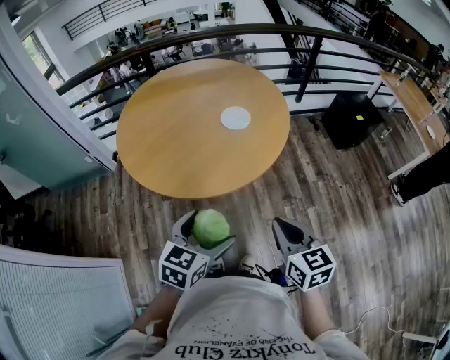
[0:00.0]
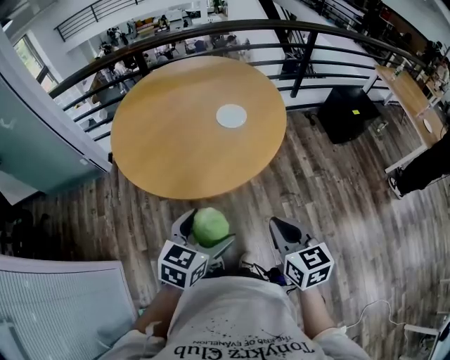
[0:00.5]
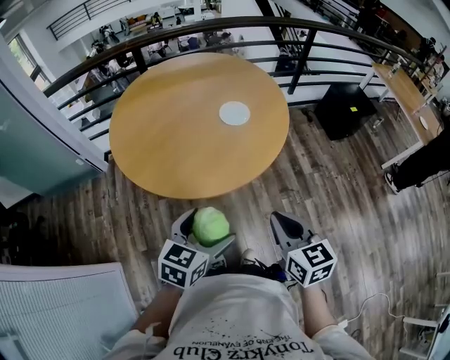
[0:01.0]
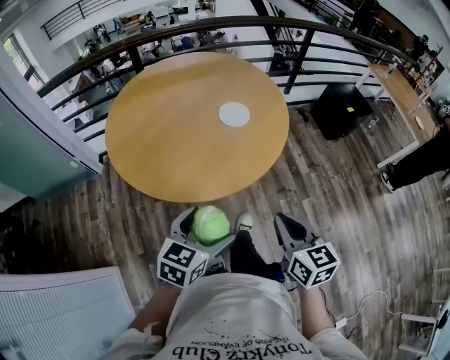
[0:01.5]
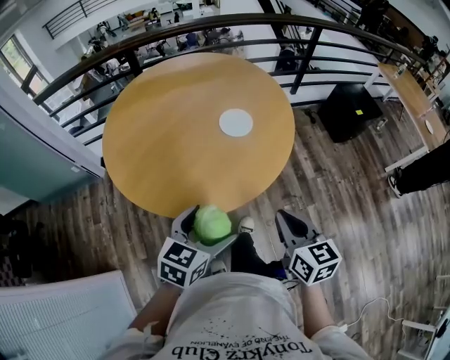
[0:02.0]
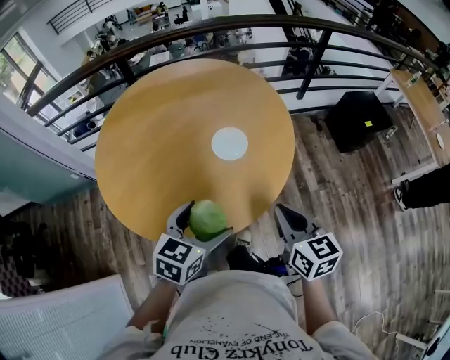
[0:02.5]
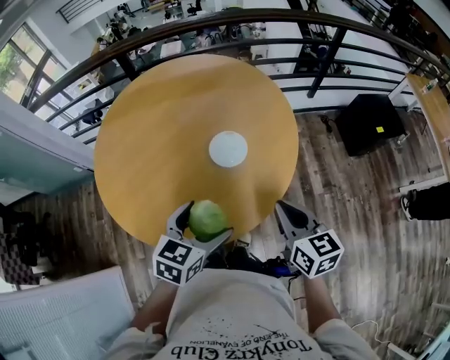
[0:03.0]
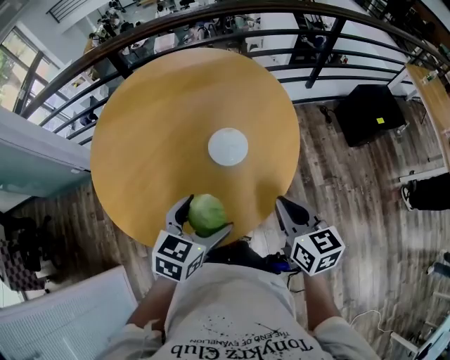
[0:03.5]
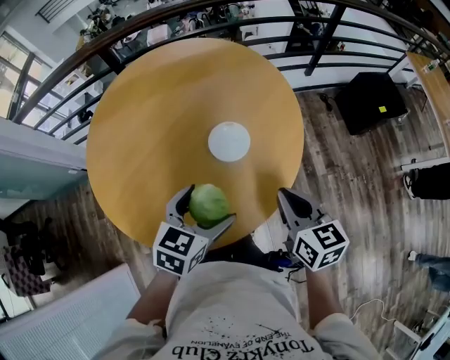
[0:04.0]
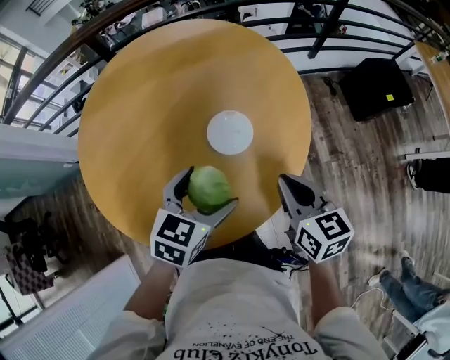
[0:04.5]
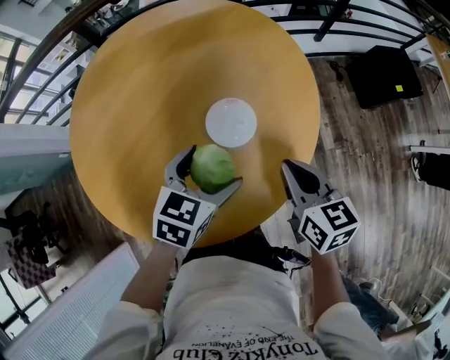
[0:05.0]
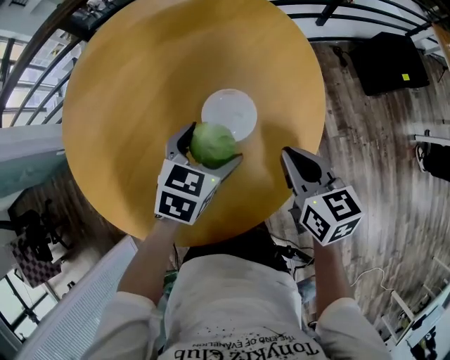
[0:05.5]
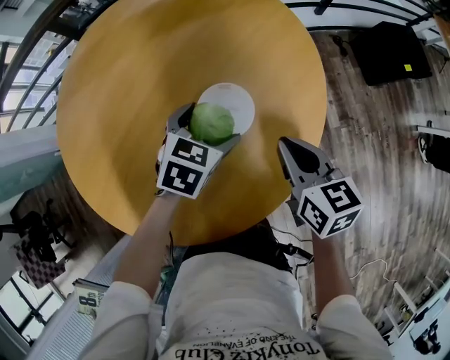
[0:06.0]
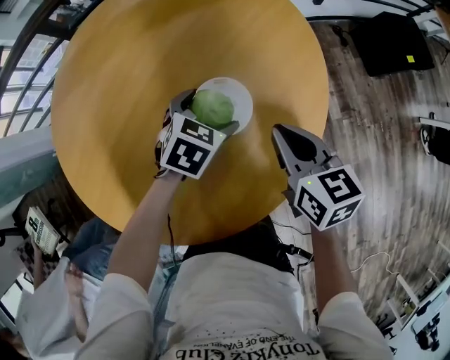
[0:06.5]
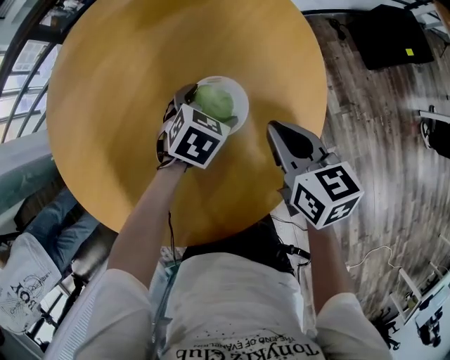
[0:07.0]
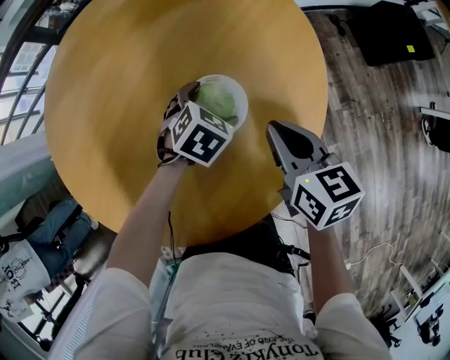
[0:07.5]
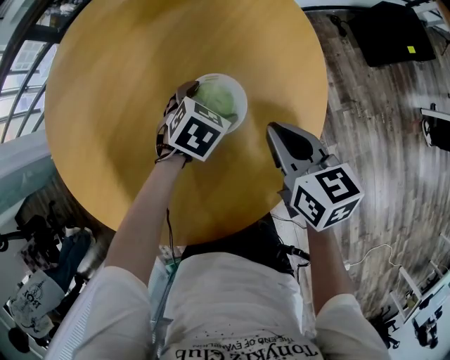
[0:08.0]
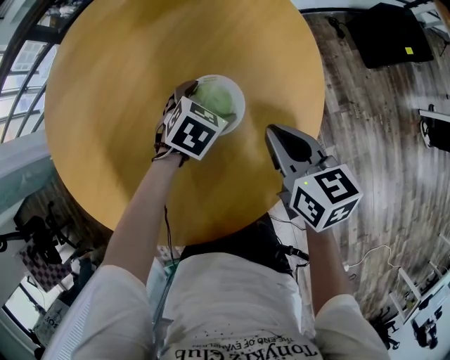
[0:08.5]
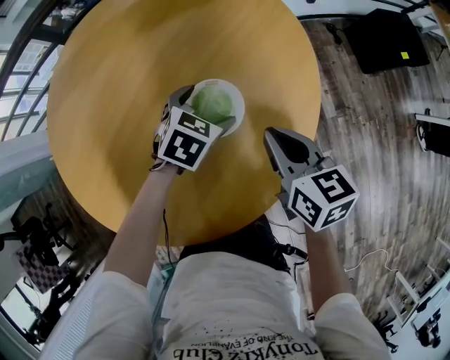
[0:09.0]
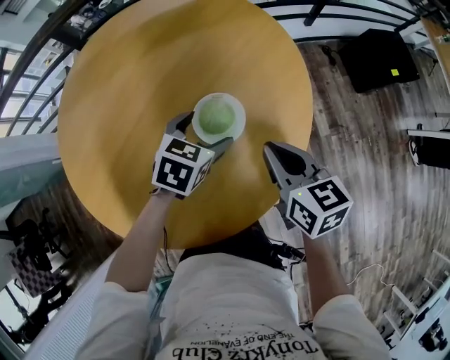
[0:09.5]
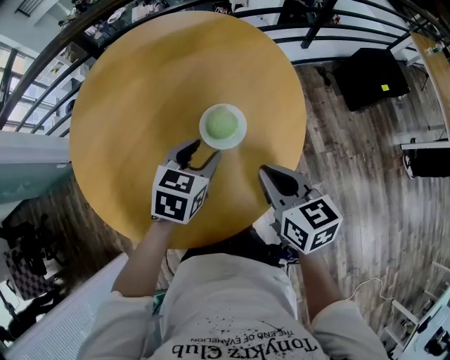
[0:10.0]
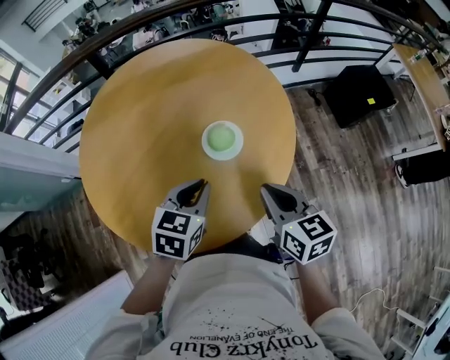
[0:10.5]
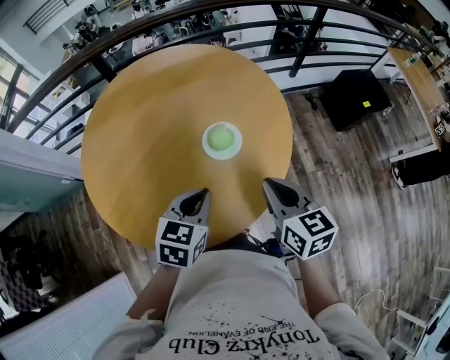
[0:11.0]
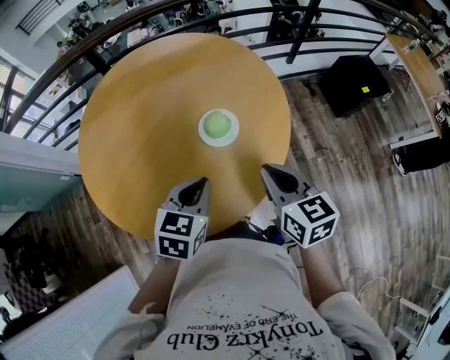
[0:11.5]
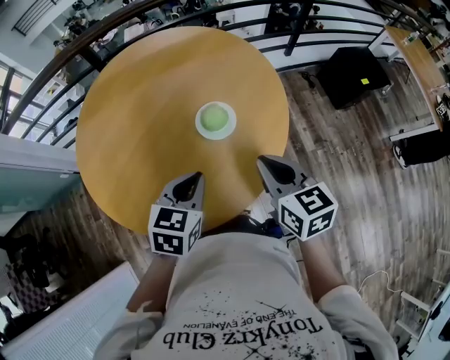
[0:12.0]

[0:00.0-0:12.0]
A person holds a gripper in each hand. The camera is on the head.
0:00.0 to 0:02.0: Both grippers move forward, roughly 10 cm.
0:02.0 to 0:04.0: Both grippers travel together forward, approximately 25 cm.
0:04.0 to 0:06.0: The two grippers go some 20 cm forward and downward.
0:06.0 to 0:08.0: The left gripper shifts roughly 10 cm downward.
0:08.0 to 0:10.0: The grippers both shift upward and backward by roughly 20 cm. The left gripper rotates approximately 30 degrees, and closes up.
0:10.0 to 0:12.0: The right gripper shifts approximately 10 cm upward and backward. Meanwhile the left gripper shifts about 15 cm backward and upward, and closes up.

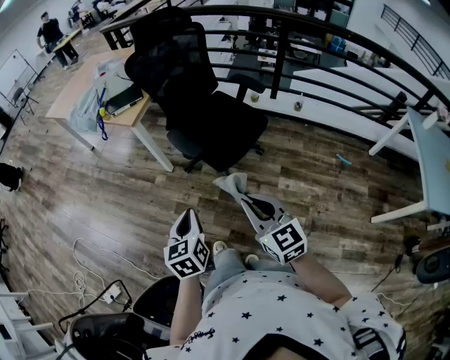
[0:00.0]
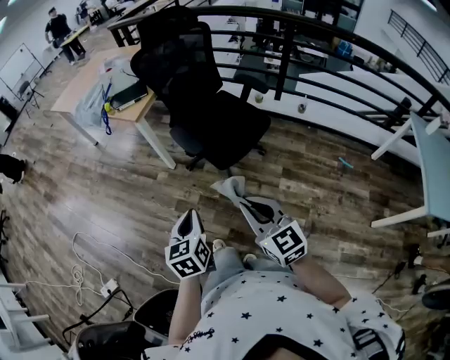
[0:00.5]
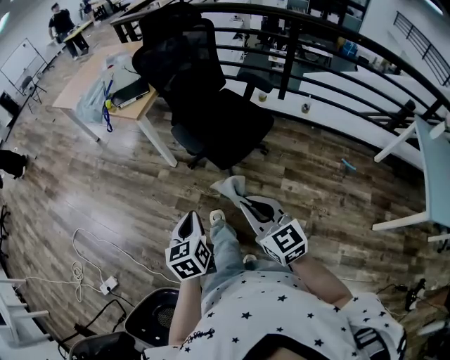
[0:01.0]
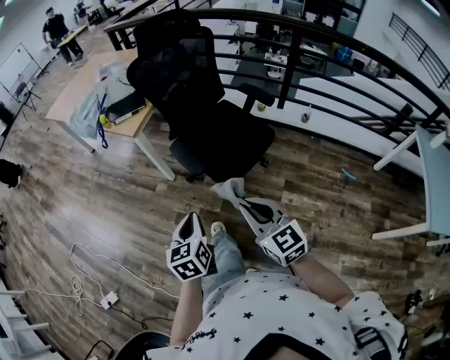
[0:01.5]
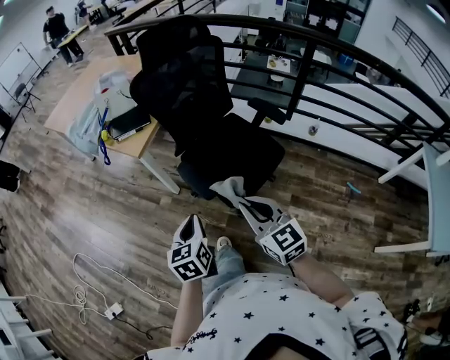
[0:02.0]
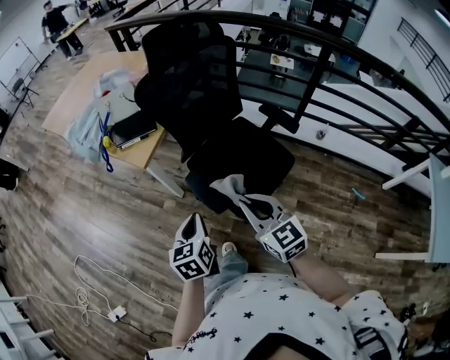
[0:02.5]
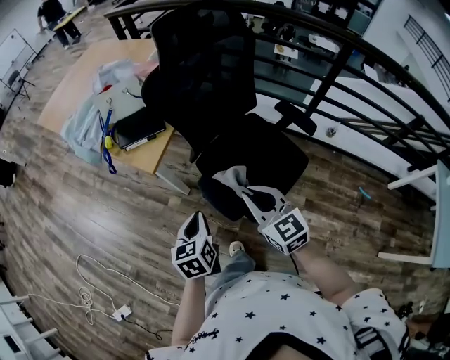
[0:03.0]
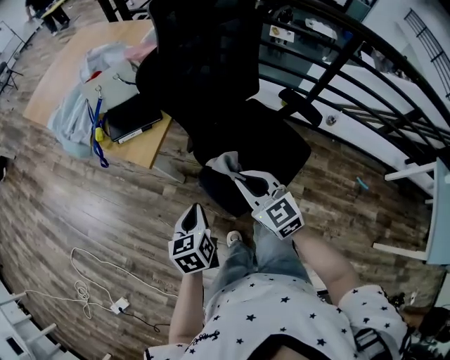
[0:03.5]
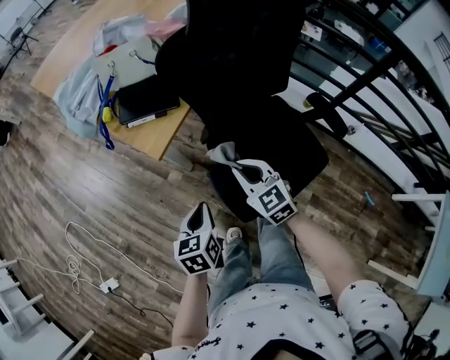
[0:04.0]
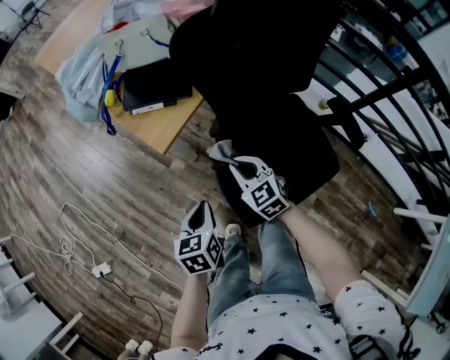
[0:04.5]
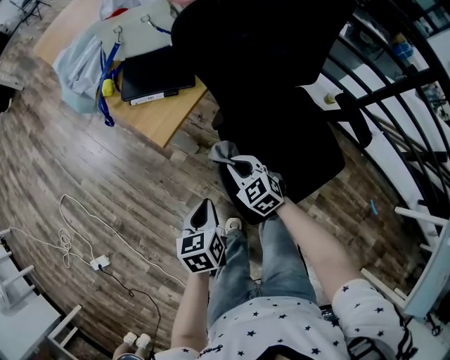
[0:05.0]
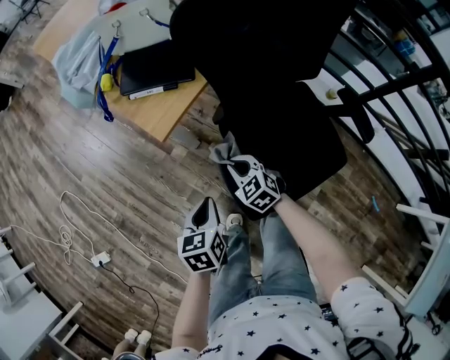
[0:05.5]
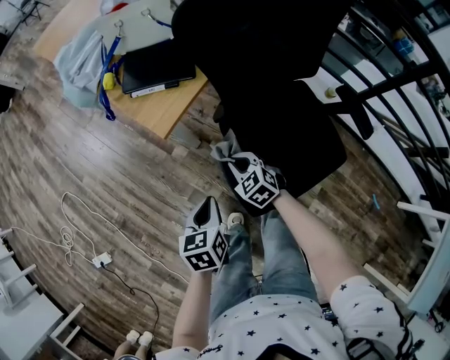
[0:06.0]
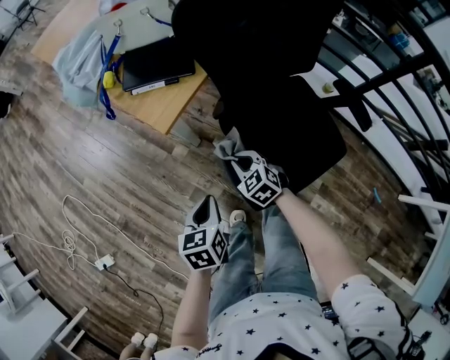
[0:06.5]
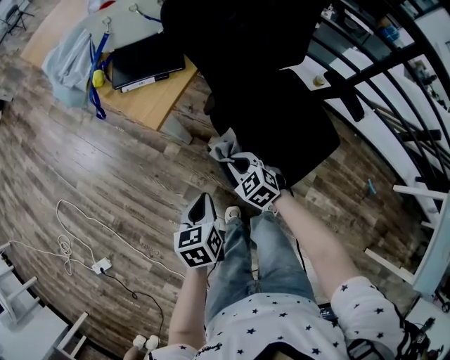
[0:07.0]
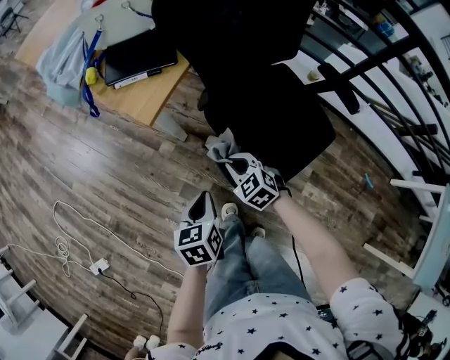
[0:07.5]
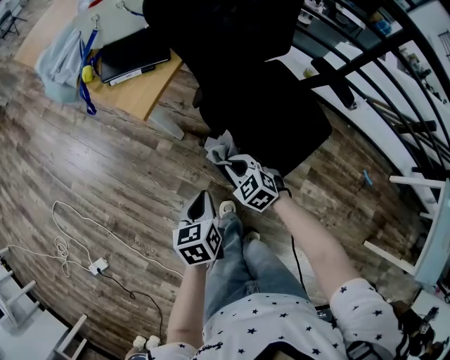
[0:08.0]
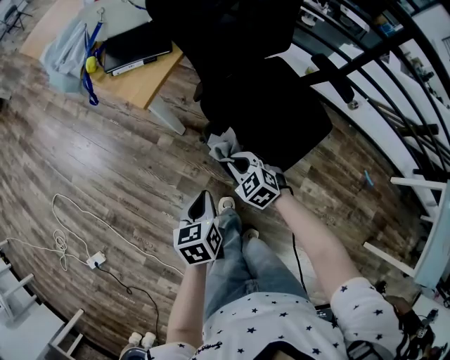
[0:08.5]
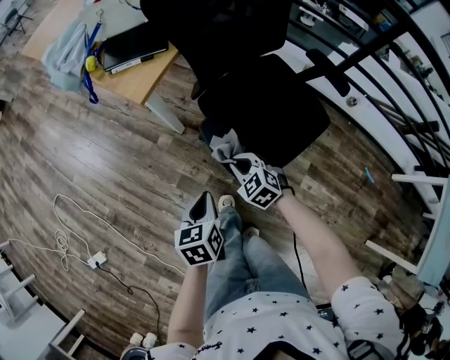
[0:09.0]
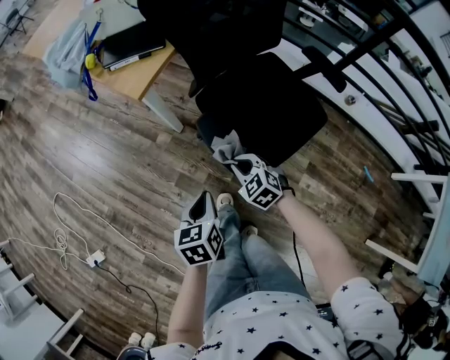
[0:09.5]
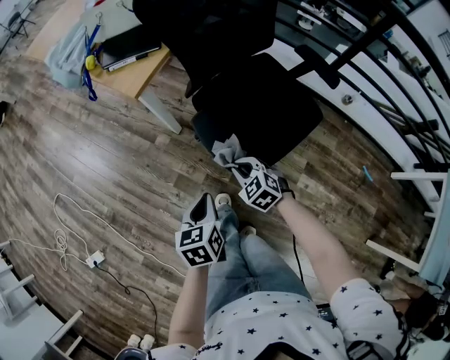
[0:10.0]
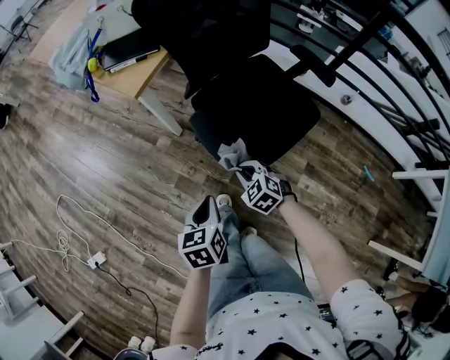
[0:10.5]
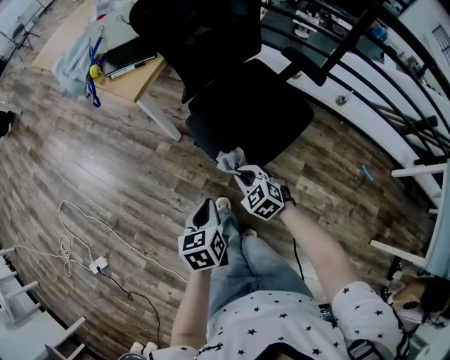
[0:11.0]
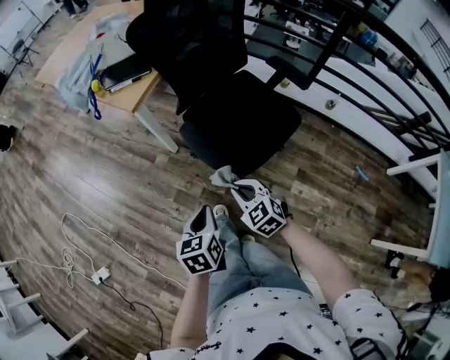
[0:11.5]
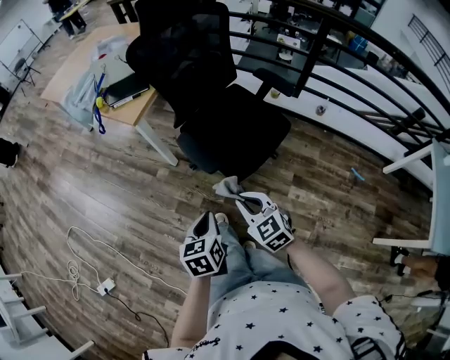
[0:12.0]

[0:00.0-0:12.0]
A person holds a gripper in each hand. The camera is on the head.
0:00.0 to 0:02.0: The two grippers go about 20 cm forward.
0:02.0 to 0:04.0: Both grippers move forward and downward, some 30 cm. The right gripper swivels about 20 degrees.
0:04.0 to 0:06.0: The right gripper heads downward, covering about 15 cm, and changes its angle by about 20 degrees, while the left gripper shifts approximately 5 cm downward.
0:06.0 to 0:08.0: The right gripper is displaced backward by approximately 10 cm; the left gripper moves backward, approximately 5 cm.
0:08.0 to 0:10.0: The grippers both shift backward by roughly 10 cm.
0:10.0 to 0:12.0: The left gripper shifts some 15 cm backward and upward, while the right gripper goes roughly 25 cm backward and upward, and turns by about 20 degrees.

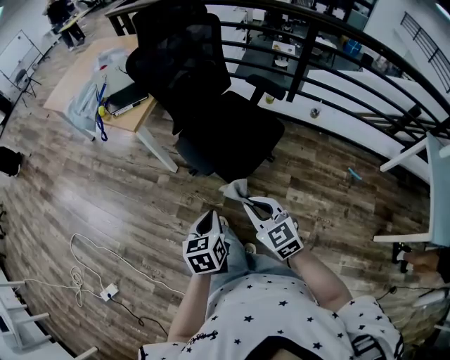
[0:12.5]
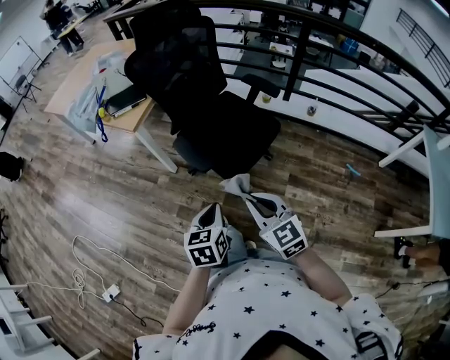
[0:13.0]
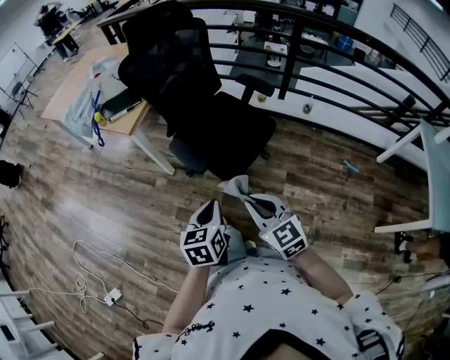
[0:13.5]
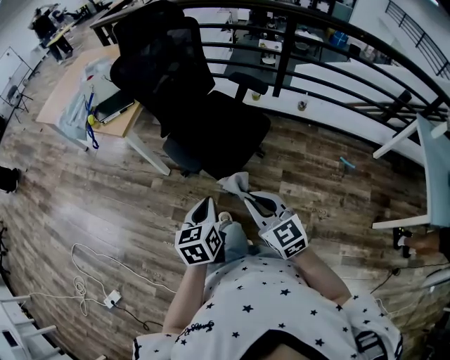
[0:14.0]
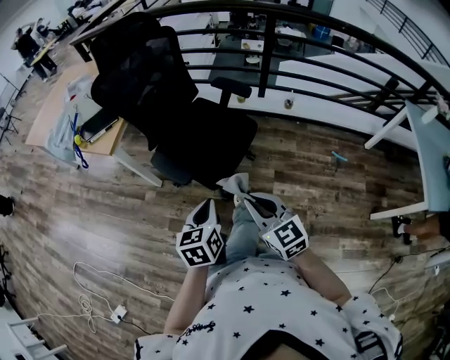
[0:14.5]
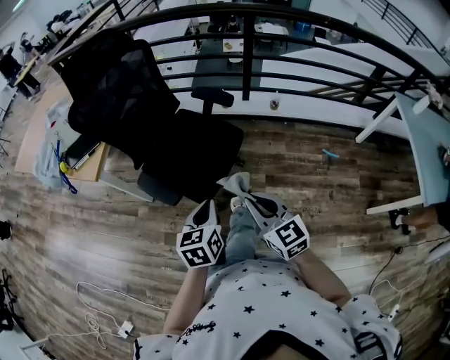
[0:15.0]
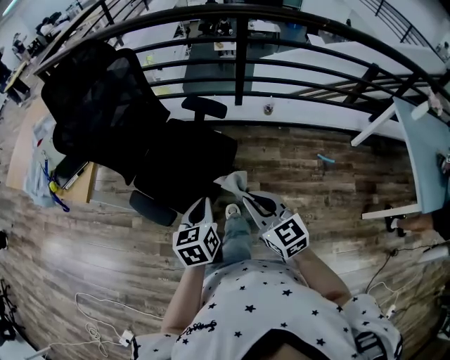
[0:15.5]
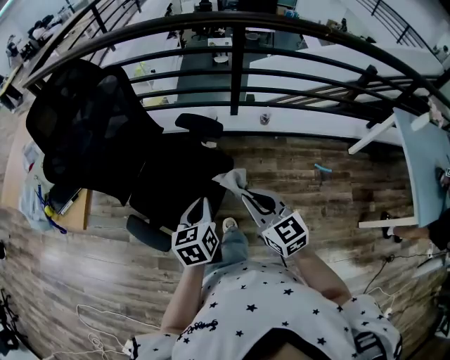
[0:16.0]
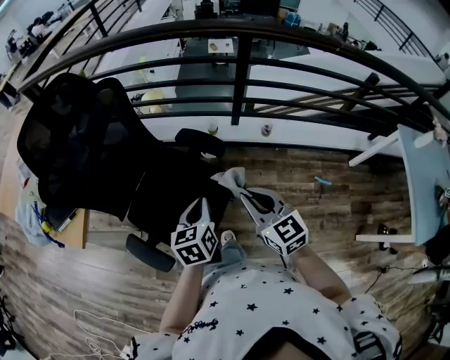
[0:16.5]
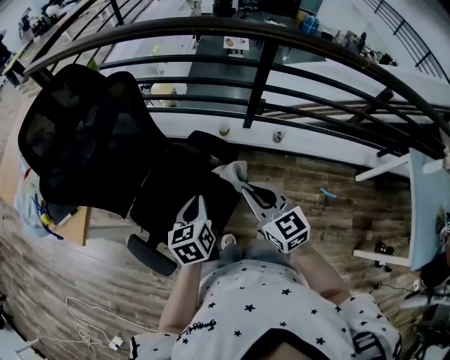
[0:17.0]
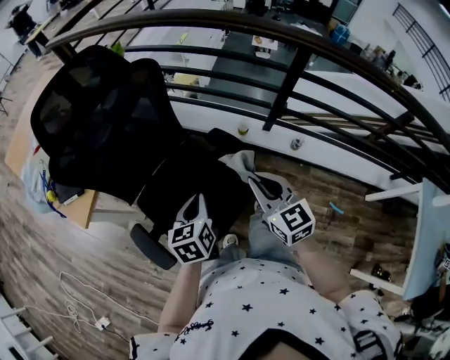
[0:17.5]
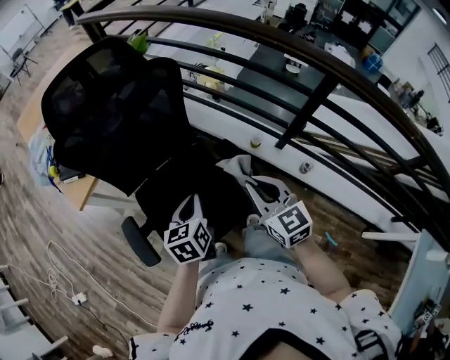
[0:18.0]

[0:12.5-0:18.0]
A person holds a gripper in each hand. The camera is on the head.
0:12.5 to 0:14.5: The two grippers go roughly 10 cm to the right.
0:14.5 to 0:16.0: Both grippers move forward and to the right, approximately 25 cm.
0:16.0 to 0:18.0: The right gripper changes place by approximately 30 cm, and swivels approximately 30 degrees. The left gripper ends up some 20 cm from where it was, and turns by roughly 30 degrees.
